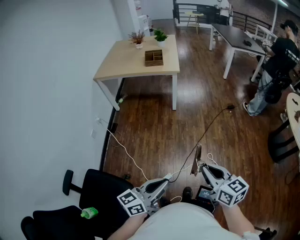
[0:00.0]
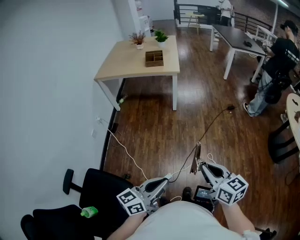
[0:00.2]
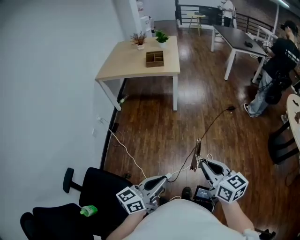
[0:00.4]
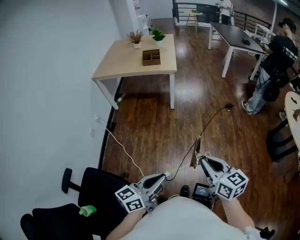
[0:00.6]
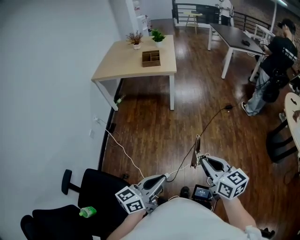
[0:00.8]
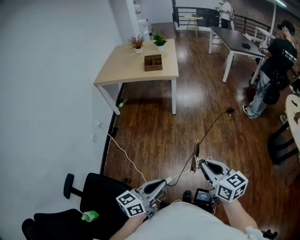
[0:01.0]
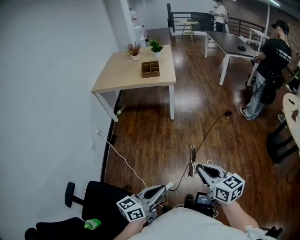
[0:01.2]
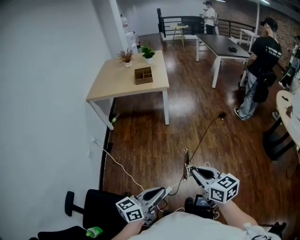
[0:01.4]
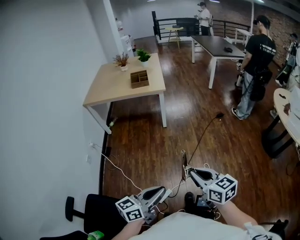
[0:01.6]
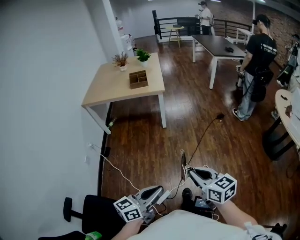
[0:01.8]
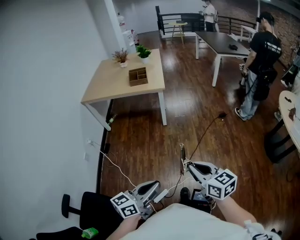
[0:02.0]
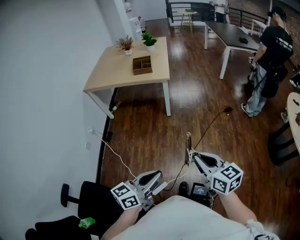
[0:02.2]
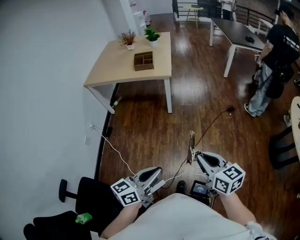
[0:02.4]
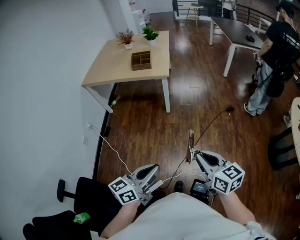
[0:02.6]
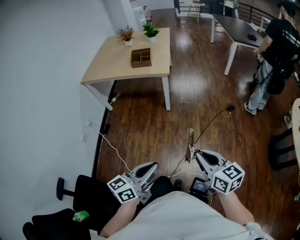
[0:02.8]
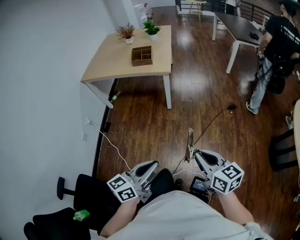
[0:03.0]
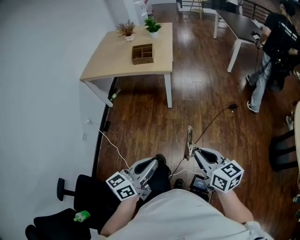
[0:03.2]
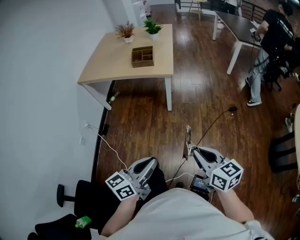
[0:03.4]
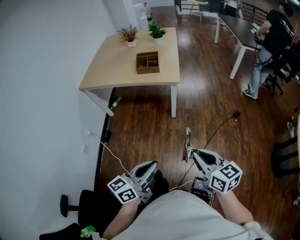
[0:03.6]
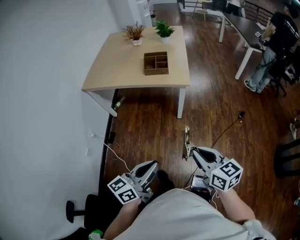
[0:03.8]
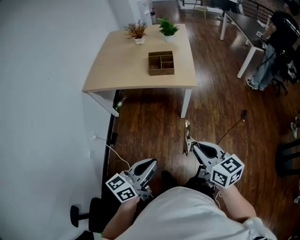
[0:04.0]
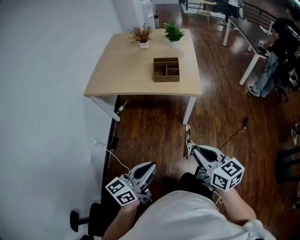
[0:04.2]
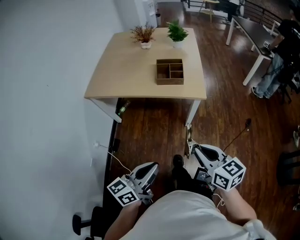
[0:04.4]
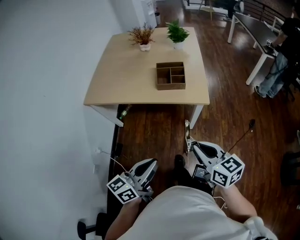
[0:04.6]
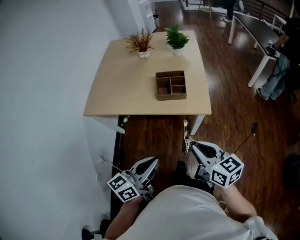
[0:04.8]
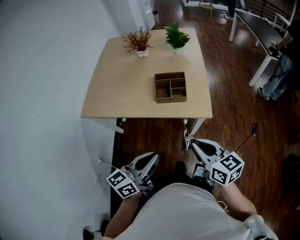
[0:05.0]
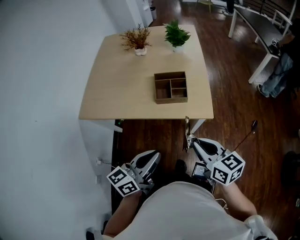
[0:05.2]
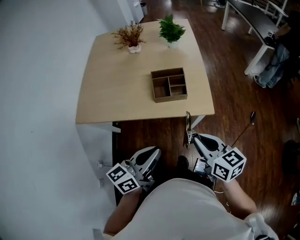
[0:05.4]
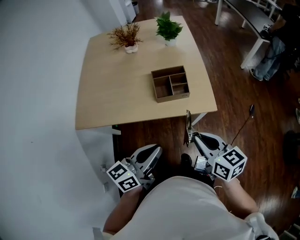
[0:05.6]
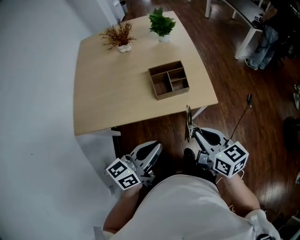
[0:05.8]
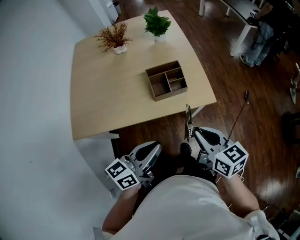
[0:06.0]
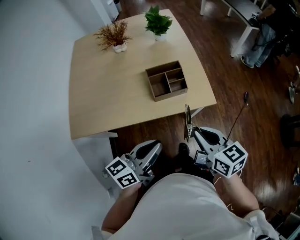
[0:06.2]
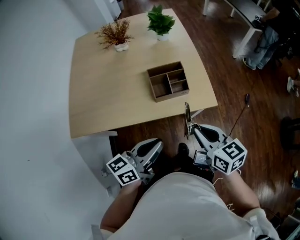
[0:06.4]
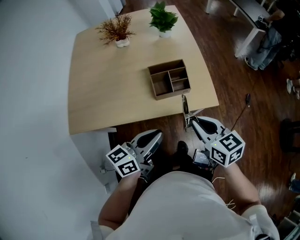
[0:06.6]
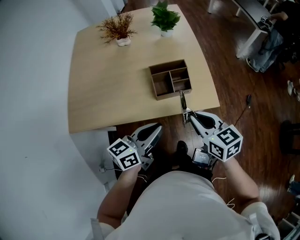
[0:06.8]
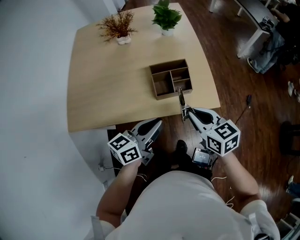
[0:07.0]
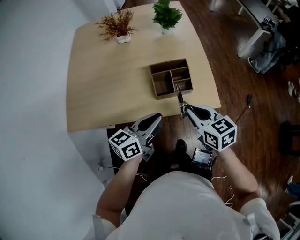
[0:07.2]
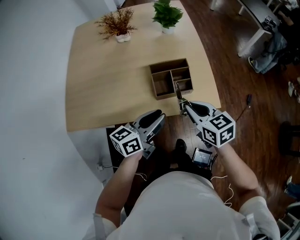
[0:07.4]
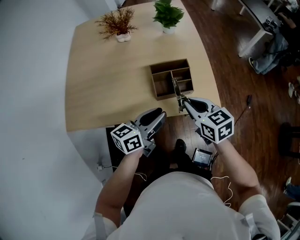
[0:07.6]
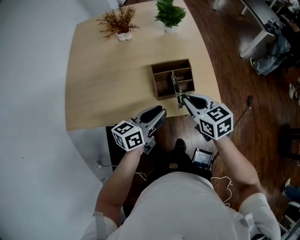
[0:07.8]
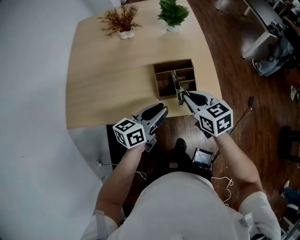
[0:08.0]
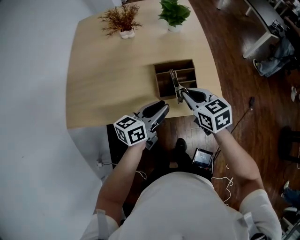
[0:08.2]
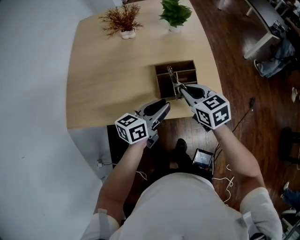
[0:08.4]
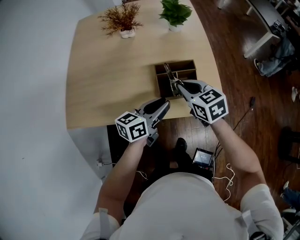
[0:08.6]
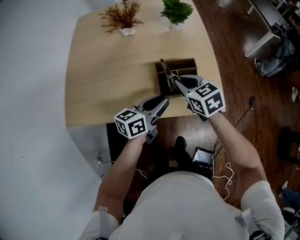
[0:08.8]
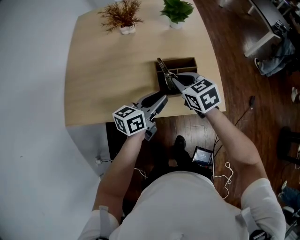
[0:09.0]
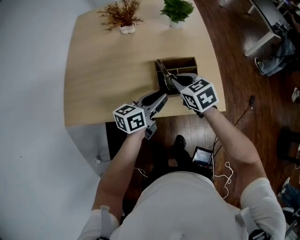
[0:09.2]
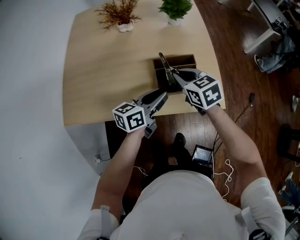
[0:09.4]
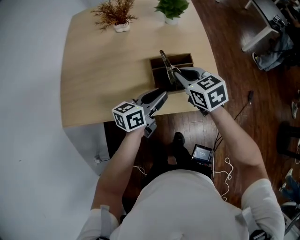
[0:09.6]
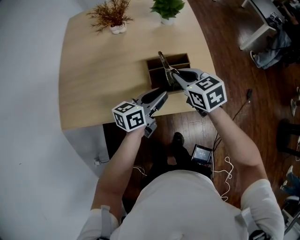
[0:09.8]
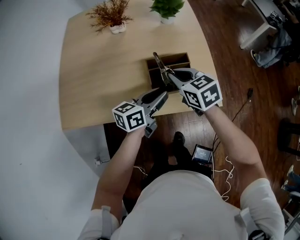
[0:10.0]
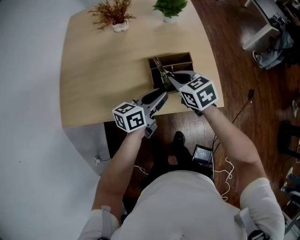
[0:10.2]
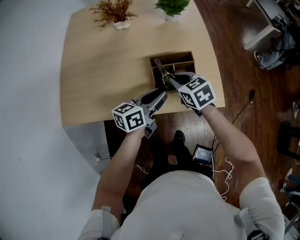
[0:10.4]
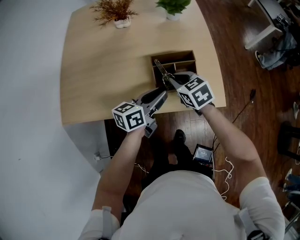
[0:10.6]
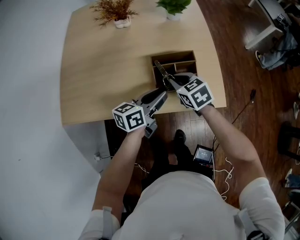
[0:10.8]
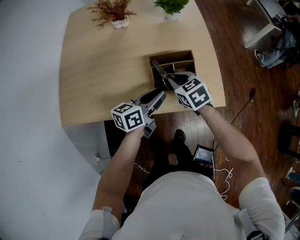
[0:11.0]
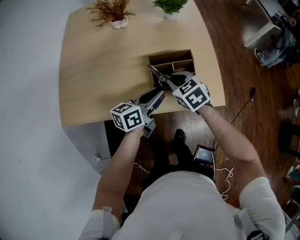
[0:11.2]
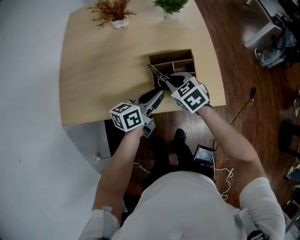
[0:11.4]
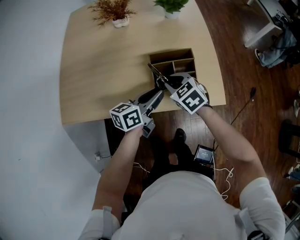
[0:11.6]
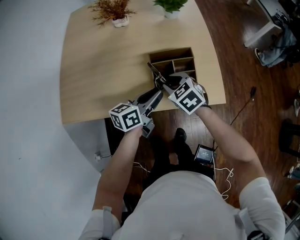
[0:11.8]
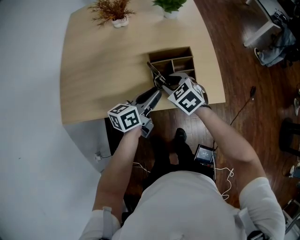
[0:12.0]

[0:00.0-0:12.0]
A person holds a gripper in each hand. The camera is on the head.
0:00.0 to 0:01.6: The grippers stay close to where they were, moving slightly.
0:01.6 to 0:03.0: Both grippers move forward and to the right, approximately 25 cm.
0:03.0 to 0:04.4: The pair of grippers is taken forward and to the left, about 40 cm.
0:04.4 to 0:06.0: The left gripper shifts approximately 30 cm forward, and turns by roughly 20 degrees. The right gripper is displaced forward and to the left by approximately 25 cm.
0:06.0 to 0:07.6: The left gripper moves forward and downward, approximately 15 cm. Meanwhile the right gripper travels forward by approximately 15 cm.
0:07.6 to 0:09.0: The right gripper goes about 10 cm forward and to the left. Meanwhile the left gripper moves forward, approximately 5 cm.
0:09.0 to 0:10.4: The grippers stay close to where they were, moving slightly.
0:10.4 to 0:12.0: The right gripper opens up.

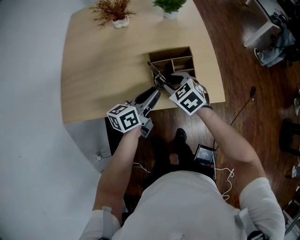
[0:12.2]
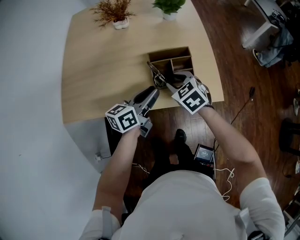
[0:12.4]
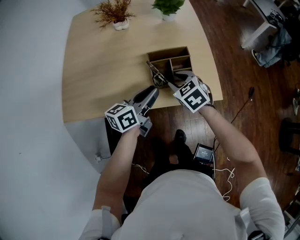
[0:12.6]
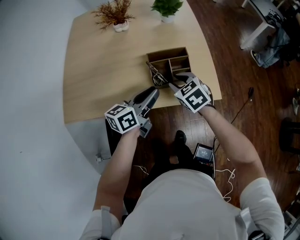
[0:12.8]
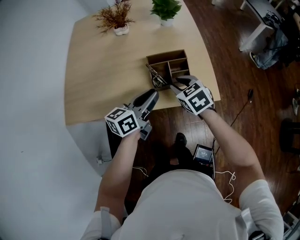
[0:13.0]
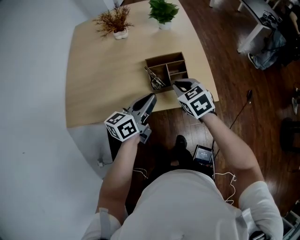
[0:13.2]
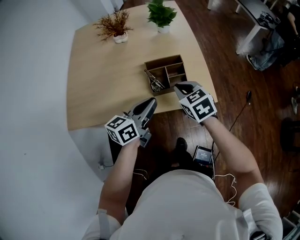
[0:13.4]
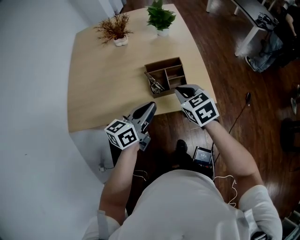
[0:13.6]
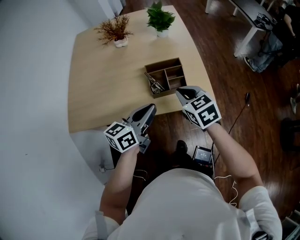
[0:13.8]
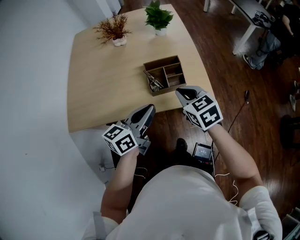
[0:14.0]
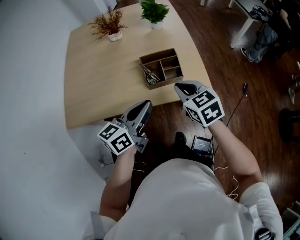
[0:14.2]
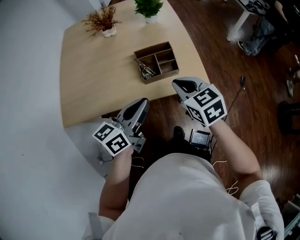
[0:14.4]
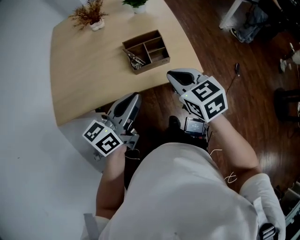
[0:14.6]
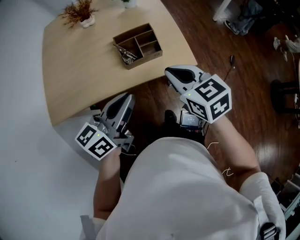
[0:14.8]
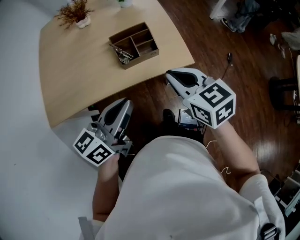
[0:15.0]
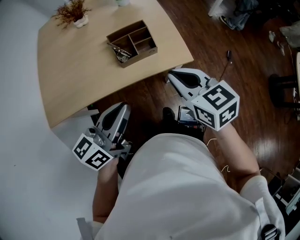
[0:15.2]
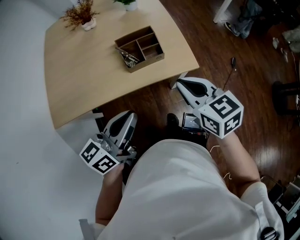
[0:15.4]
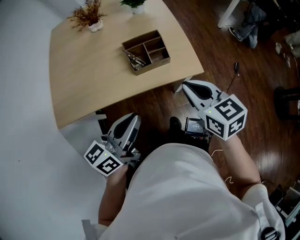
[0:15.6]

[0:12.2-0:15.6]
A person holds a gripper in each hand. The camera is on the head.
0:12.2 to 0:13.8: The right gripper travels upward, to the right and backward by roughly 15 cm, and closes. The left gripper travels upward and backward by some 10 cm.
0:13.8 to 0:15.6: The right gripper heads backward and to the right, covering about 10 cm, while the left gripper shifts about 10 cm backward.

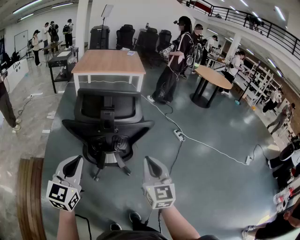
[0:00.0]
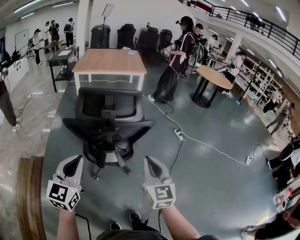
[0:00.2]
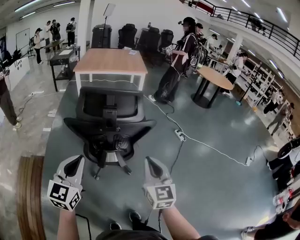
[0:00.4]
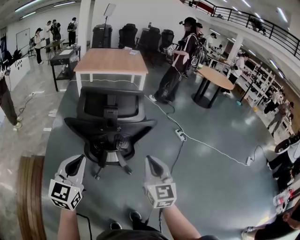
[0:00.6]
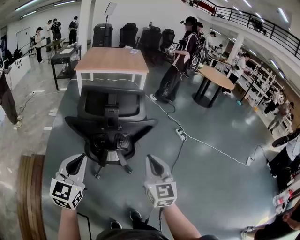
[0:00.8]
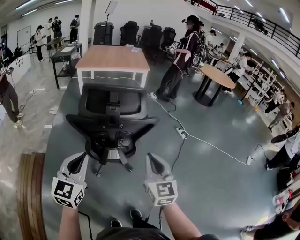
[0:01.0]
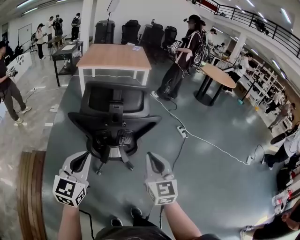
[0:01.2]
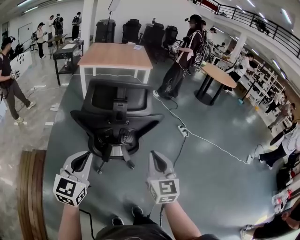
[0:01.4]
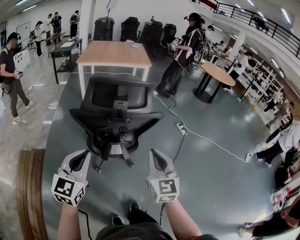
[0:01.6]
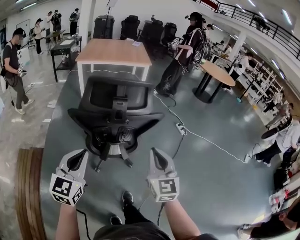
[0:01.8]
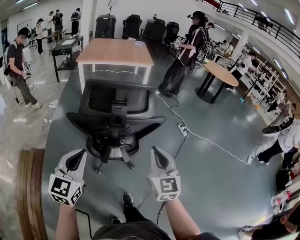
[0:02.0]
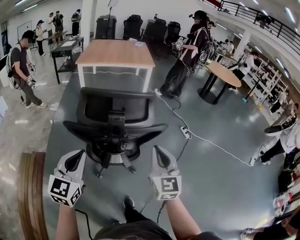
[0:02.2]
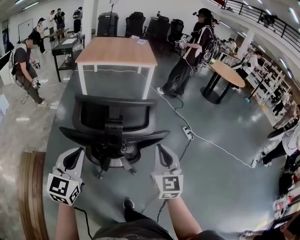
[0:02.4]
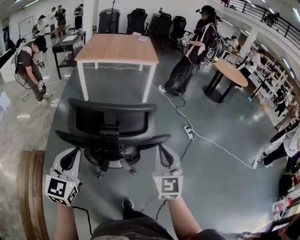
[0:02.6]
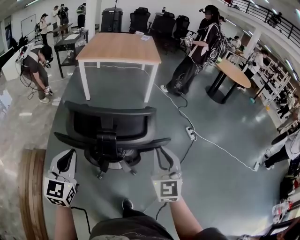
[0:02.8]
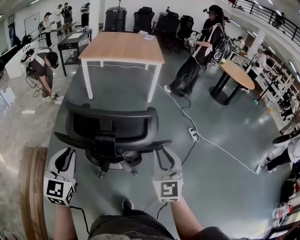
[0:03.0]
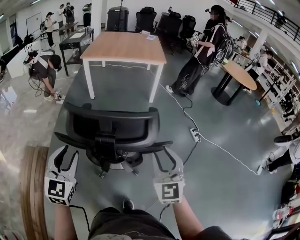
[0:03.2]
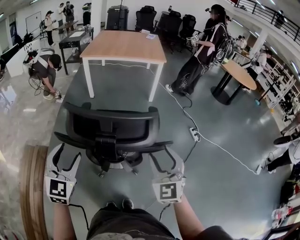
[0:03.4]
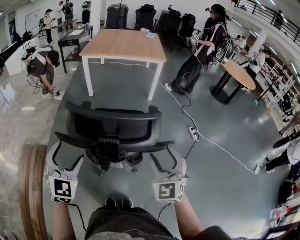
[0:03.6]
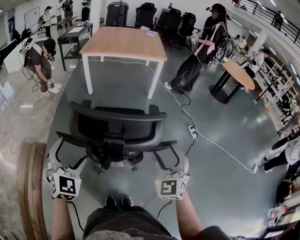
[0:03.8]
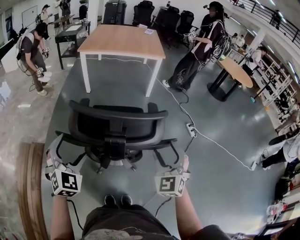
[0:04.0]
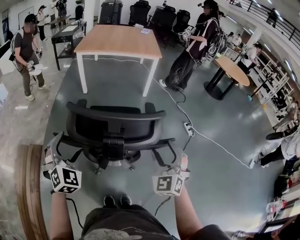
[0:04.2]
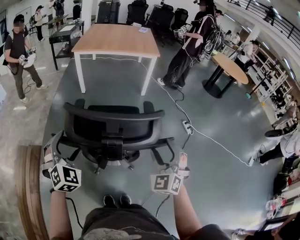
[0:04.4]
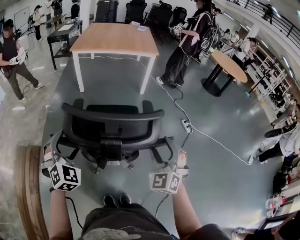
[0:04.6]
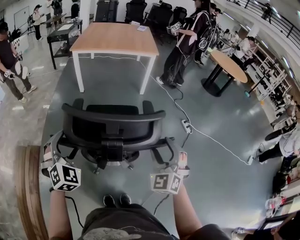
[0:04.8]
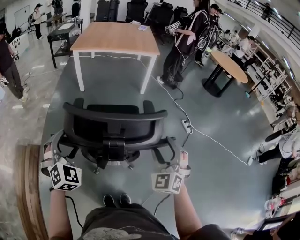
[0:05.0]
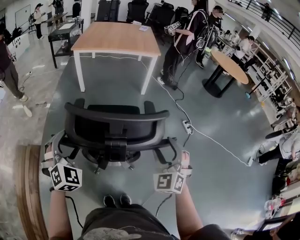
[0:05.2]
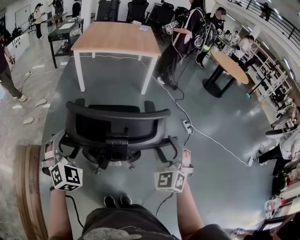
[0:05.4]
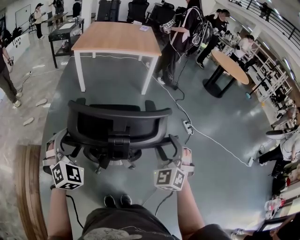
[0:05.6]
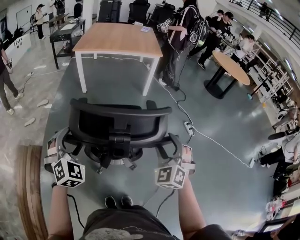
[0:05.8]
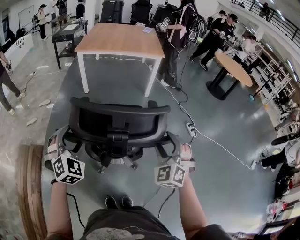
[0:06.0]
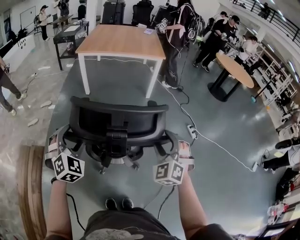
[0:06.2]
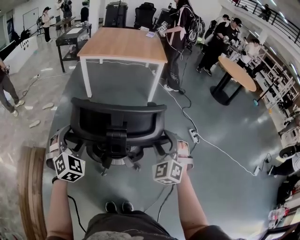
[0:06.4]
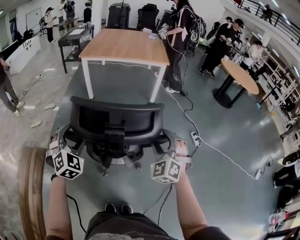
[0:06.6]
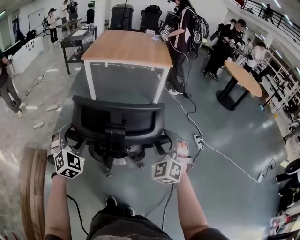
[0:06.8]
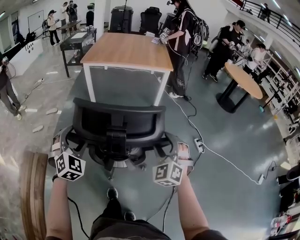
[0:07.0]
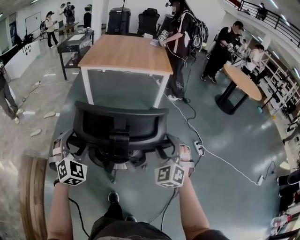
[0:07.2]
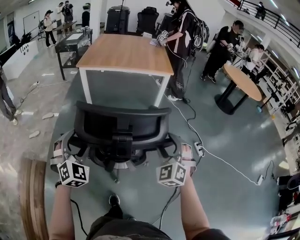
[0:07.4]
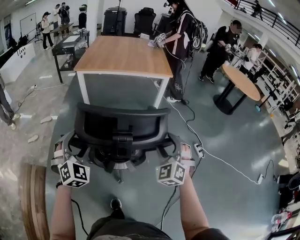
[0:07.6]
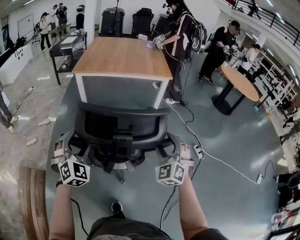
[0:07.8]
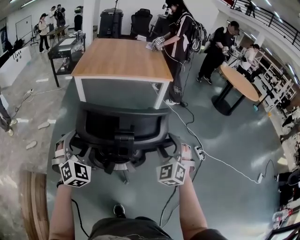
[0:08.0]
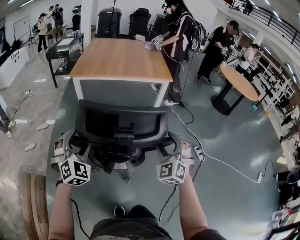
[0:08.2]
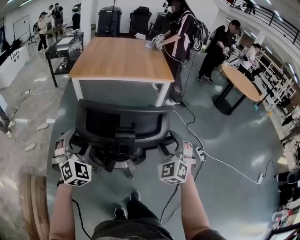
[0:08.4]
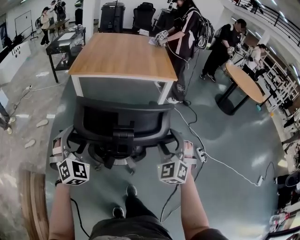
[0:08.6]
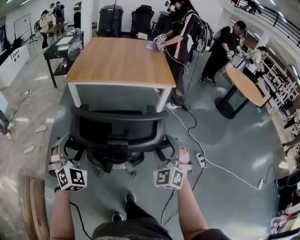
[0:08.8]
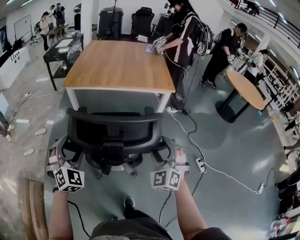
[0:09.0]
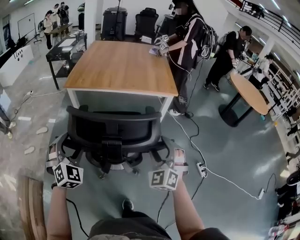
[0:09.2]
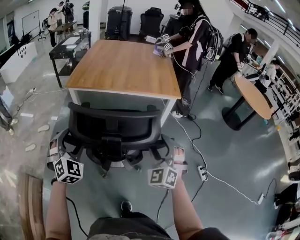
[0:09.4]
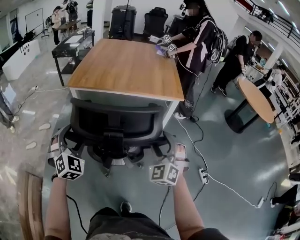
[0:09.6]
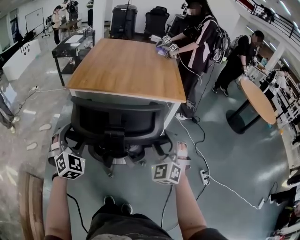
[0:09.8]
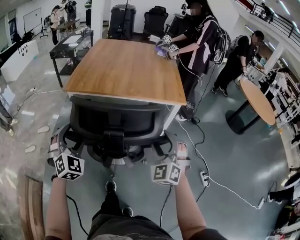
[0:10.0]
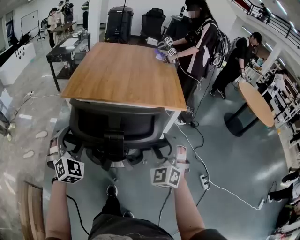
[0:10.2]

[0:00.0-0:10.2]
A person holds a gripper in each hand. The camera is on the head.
0:00.0 to 0:01.4: The grippers stay close to where they were, moving slightly.
0:01.4 to 0:03.0: The two grippers go about 15 cm forward.
0:03.0 to 0:04.4: The right gripper swivels approximately 30 degrees, and opens. Meanwhile the left gripper shifts by about 5 cm, swivels approximately 40 degrees, and opens its fingers.
0:04.4 to 0:05.8: There are only small adjustments of the grippers.
0:05.8 to 0:07.2: The two grippers go roughly 15 cm forward.
0:07.2 to 0:08.8: Both grippers travel together forward, some 20 cm.
0:08.8 to 0:10.2: Both grippers move forward, about 20 cm.
